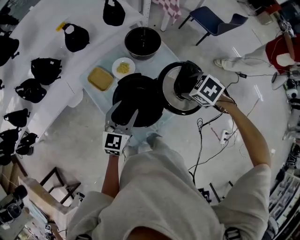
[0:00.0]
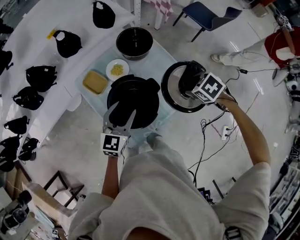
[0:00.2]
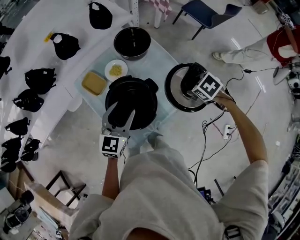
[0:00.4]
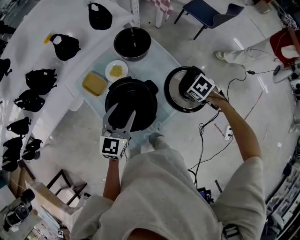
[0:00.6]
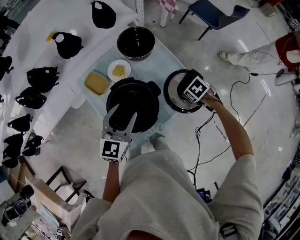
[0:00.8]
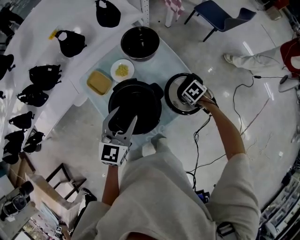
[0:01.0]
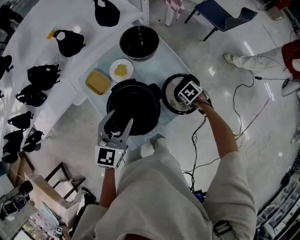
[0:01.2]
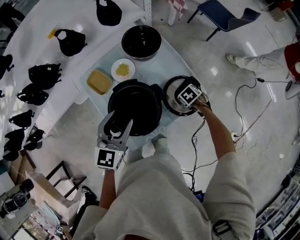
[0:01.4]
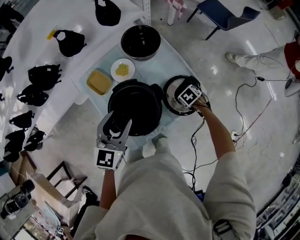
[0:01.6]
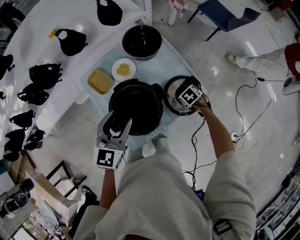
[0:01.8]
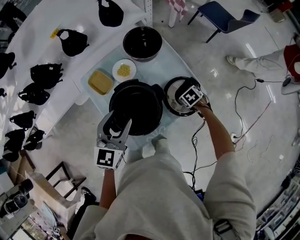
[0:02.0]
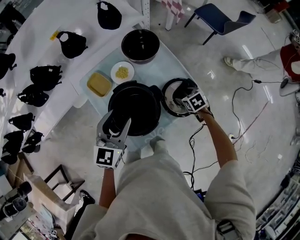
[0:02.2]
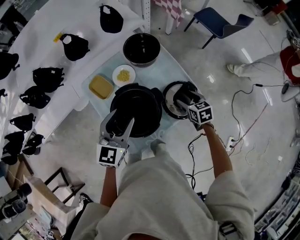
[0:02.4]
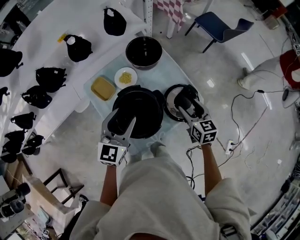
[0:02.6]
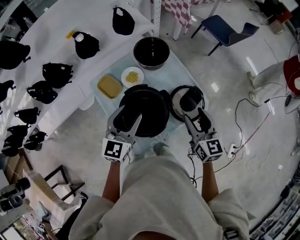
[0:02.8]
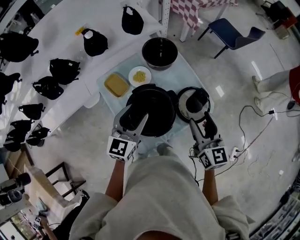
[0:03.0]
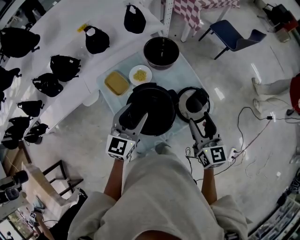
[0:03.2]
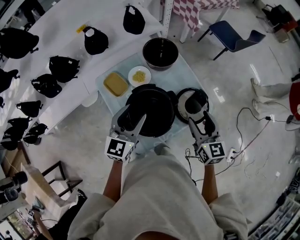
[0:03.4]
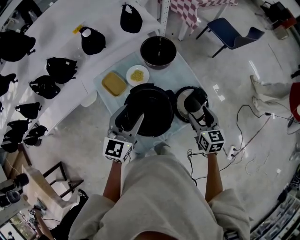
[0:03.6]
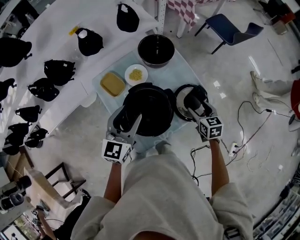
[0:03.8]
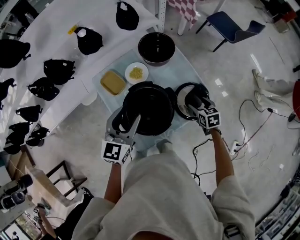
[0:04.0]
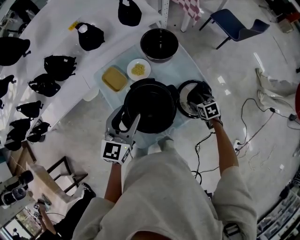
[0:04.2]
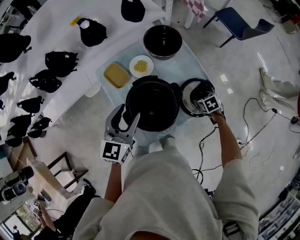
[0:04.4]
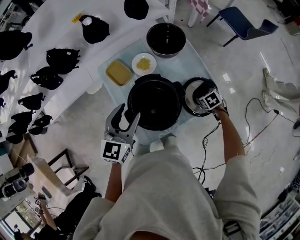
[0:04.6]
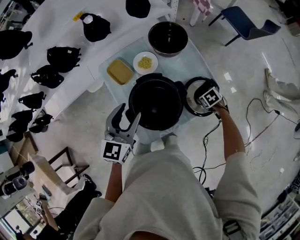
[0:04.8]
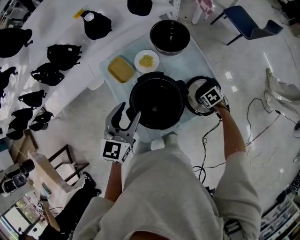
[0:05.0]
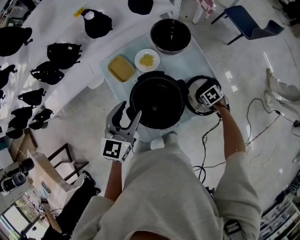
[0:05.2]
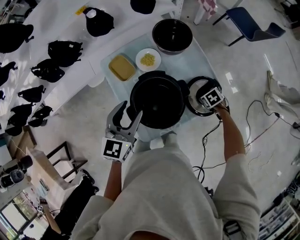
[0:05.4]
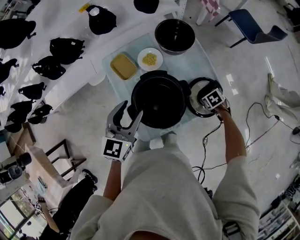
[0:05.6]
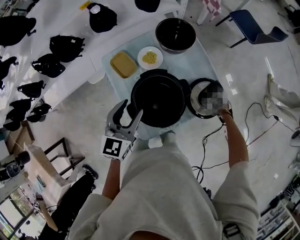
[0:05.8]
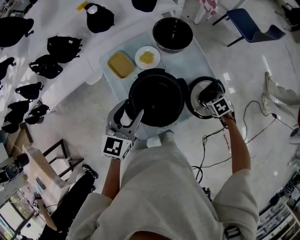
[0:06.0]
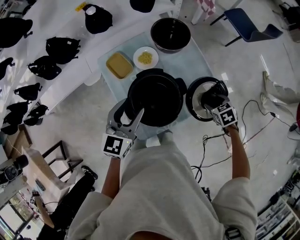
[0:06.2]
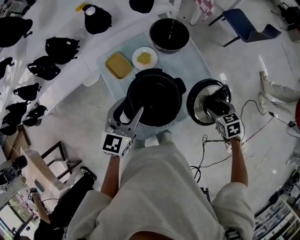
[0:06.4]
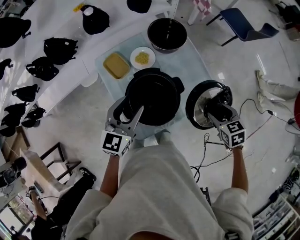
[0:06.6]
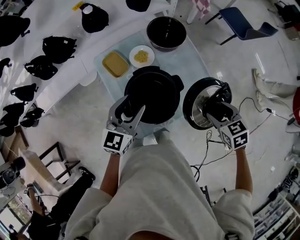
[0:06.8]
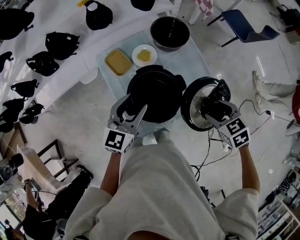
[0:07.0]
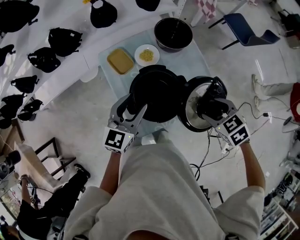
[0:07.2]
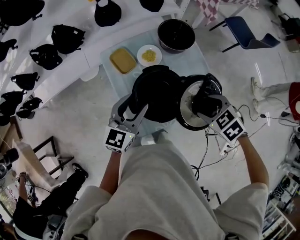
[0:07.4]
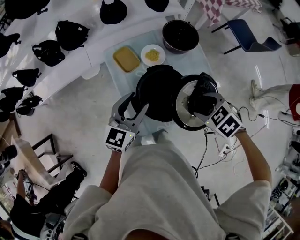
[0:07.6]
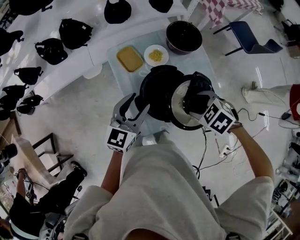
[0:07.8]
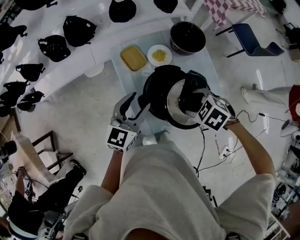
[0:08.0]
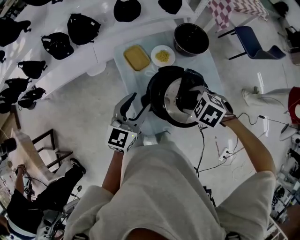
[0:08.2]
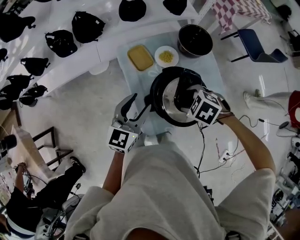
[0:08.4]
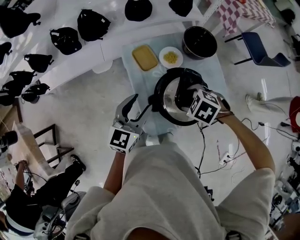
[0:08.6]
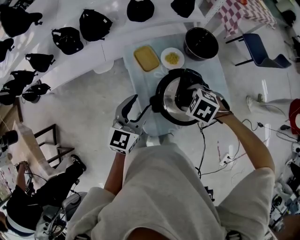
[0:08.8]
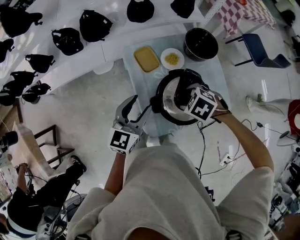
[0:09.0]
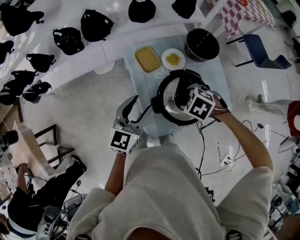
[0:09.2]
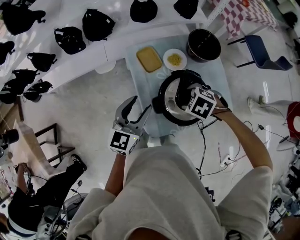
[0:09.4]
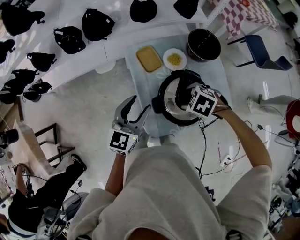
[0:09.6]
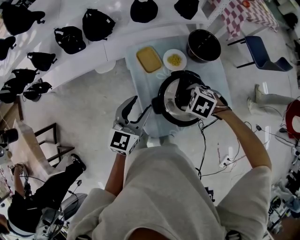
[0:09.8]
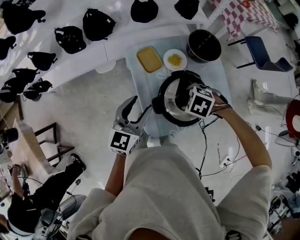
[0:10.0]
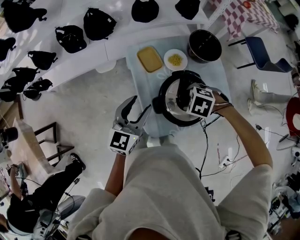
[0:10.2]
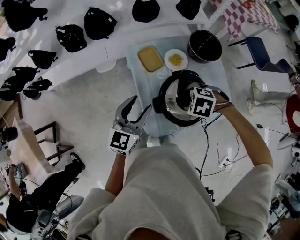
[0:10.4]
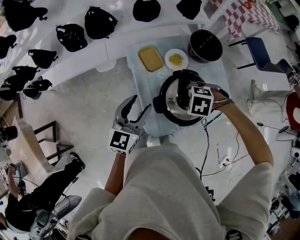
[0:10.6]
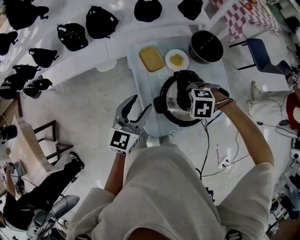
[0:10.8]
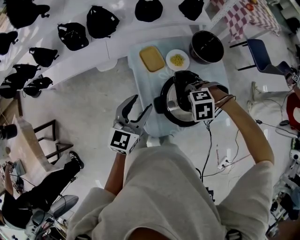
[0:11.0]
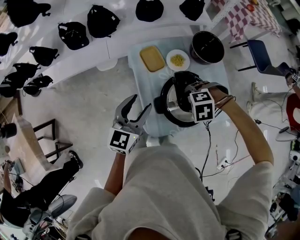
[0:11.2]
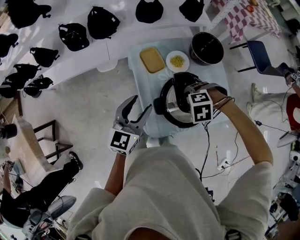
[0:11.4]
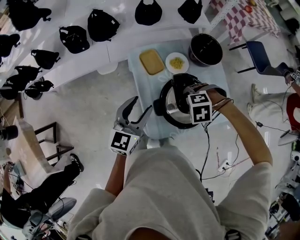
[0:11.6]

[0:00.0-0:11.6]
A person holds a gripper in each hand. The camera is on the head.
0:00.0 to 0:01.4: The right gripper moves downward, approximately 25 cm.
0:01.4 to 0:02.8: The right gripper goes about 30 cm upward, and points its fingers about 60 degrees further upward.
0:02.8 to 0:04.4: The right gripper moves downward, some 25 cm, and tilts its fingers approximately 50 degrees downward.
0:04.4 to 0:05.8: The grippers move only a little.
0:05.8 to 0:07.2: The right gripper moves upward, some 25 cm, and turns by about 20 degrees.
0:07.2 to 0:08.8: The left gripper shifts by roughly 10 cm. The right gripper changes place by roughly 20 cm, and rotates some 30 degrees.
0:08.8 to 0:10.2: The grippers stay close to where they were, moving slightly.
0:10.2 to 0:11.6: The right gripper swivels approximately 30 degrees.

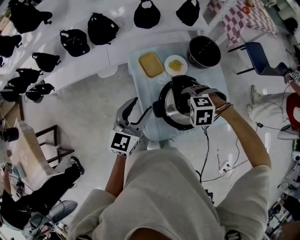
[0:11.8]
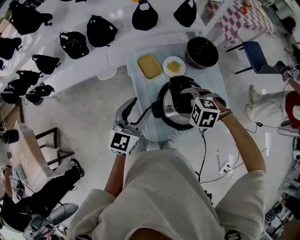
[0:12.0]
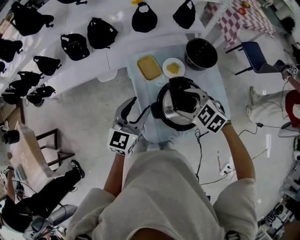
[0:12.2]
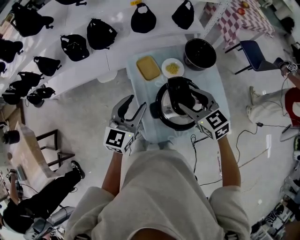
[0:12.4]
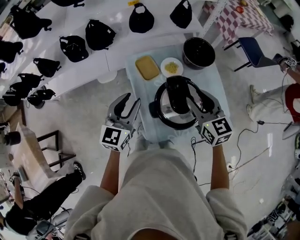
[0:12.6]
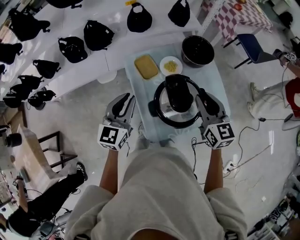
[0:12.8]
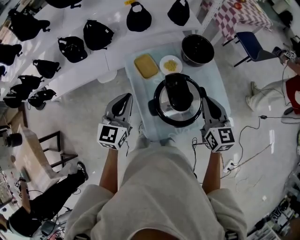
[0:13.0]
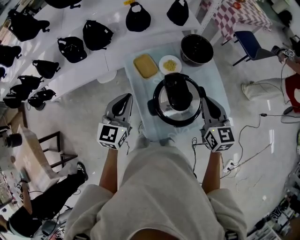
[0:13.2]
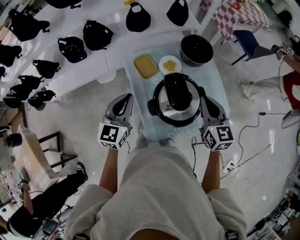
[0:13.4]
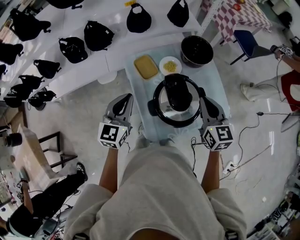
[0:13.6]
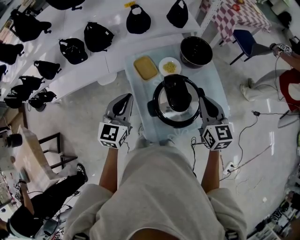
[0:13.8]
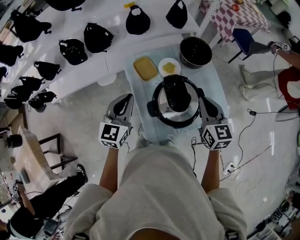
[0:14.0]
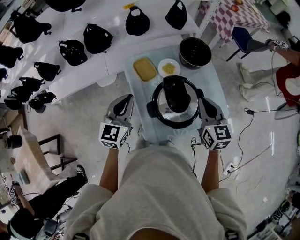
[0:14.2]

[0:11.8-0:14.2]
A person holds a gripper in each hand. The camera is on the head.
0:11.8 to 0:13.0: The right gripper goes some 15 cm upward, tips its fingers upward by some 60 degrees, and closes its fingers, while the left gripper closes.
0:13.0 to 0:14.2: Both grippers stay about where they are.

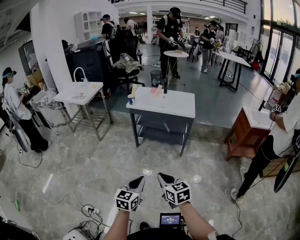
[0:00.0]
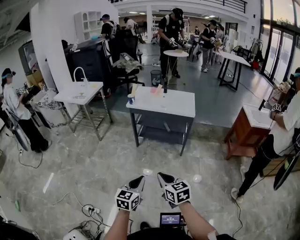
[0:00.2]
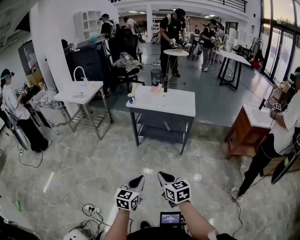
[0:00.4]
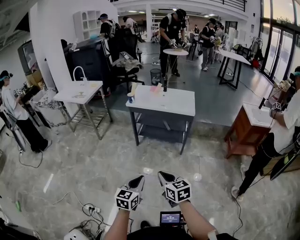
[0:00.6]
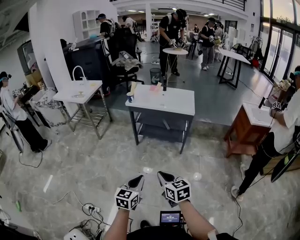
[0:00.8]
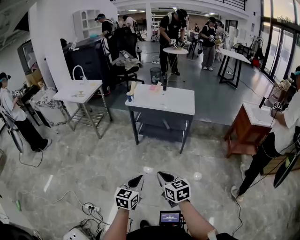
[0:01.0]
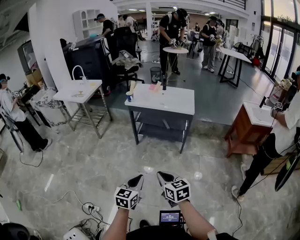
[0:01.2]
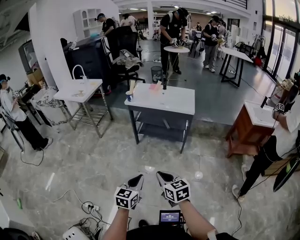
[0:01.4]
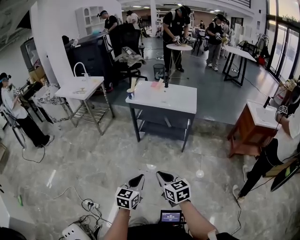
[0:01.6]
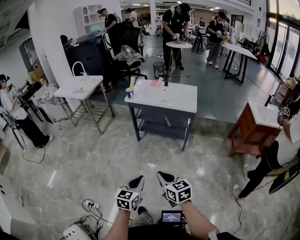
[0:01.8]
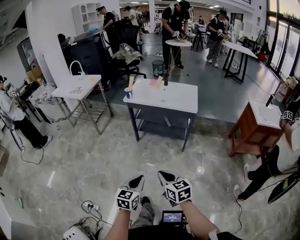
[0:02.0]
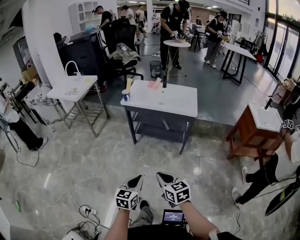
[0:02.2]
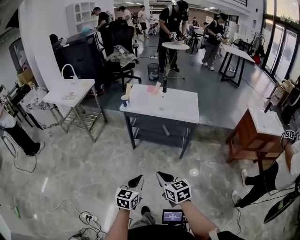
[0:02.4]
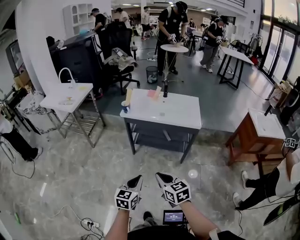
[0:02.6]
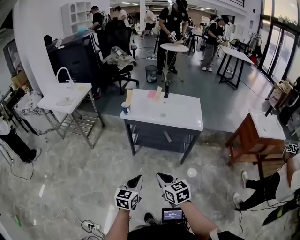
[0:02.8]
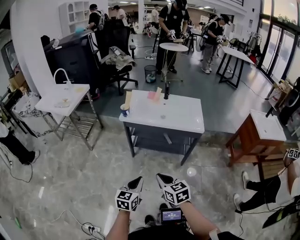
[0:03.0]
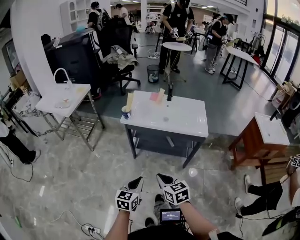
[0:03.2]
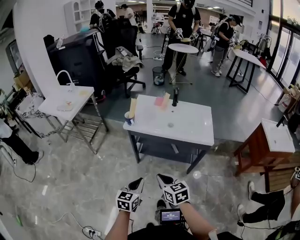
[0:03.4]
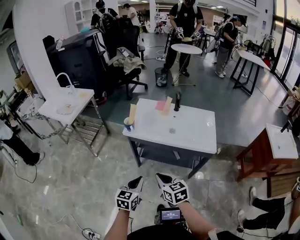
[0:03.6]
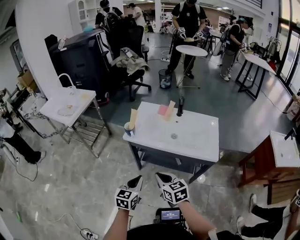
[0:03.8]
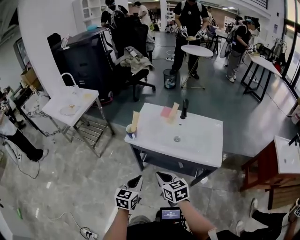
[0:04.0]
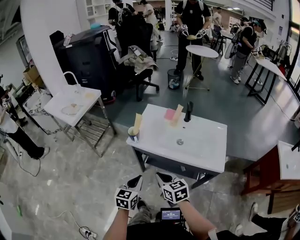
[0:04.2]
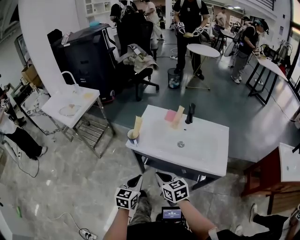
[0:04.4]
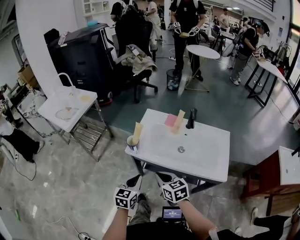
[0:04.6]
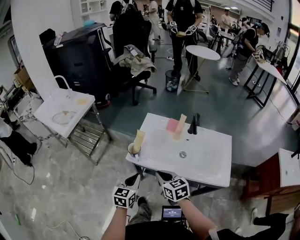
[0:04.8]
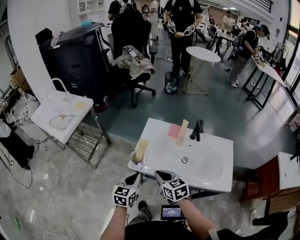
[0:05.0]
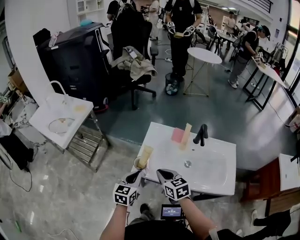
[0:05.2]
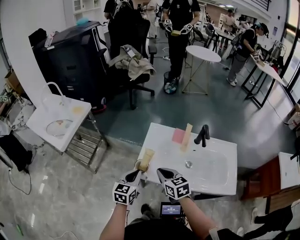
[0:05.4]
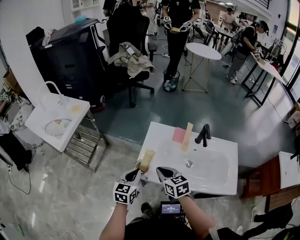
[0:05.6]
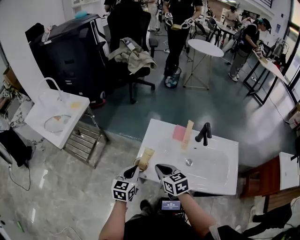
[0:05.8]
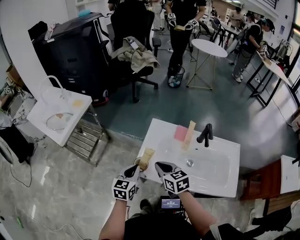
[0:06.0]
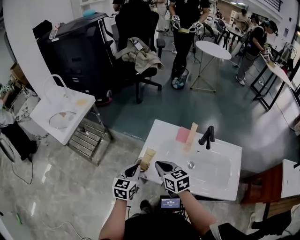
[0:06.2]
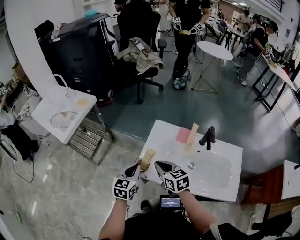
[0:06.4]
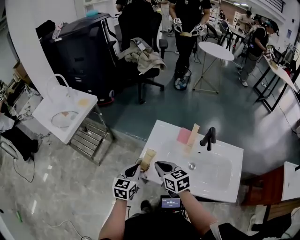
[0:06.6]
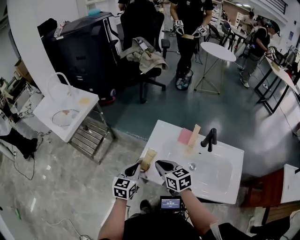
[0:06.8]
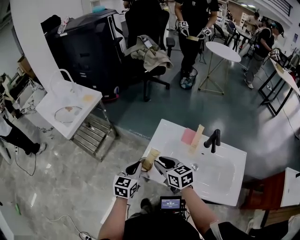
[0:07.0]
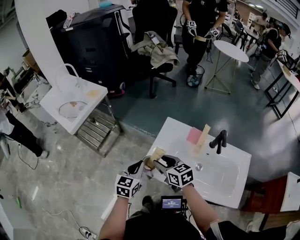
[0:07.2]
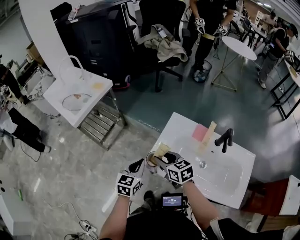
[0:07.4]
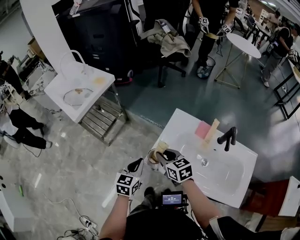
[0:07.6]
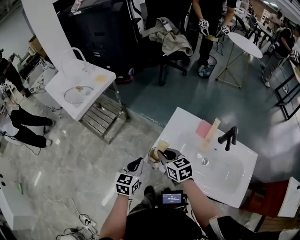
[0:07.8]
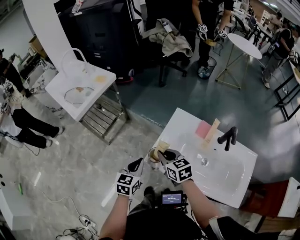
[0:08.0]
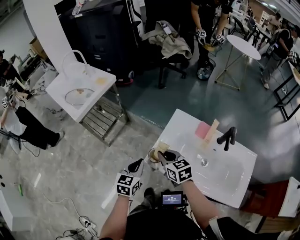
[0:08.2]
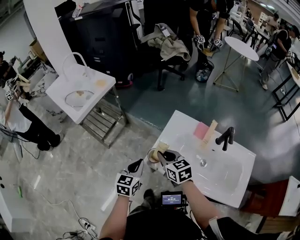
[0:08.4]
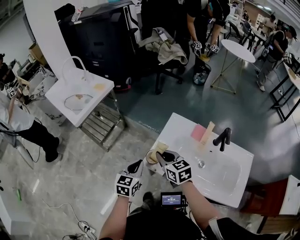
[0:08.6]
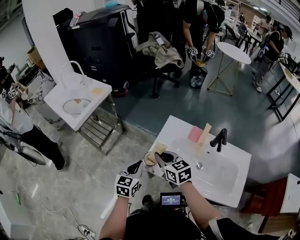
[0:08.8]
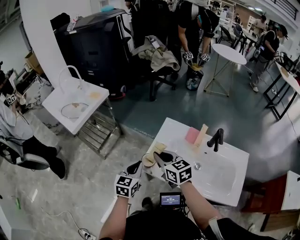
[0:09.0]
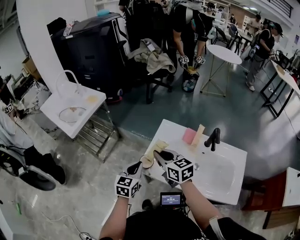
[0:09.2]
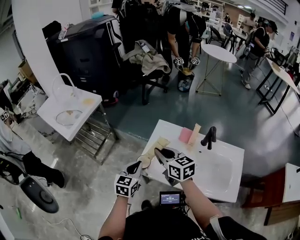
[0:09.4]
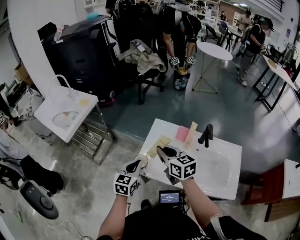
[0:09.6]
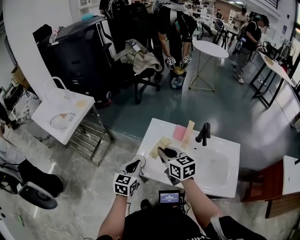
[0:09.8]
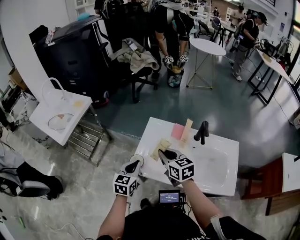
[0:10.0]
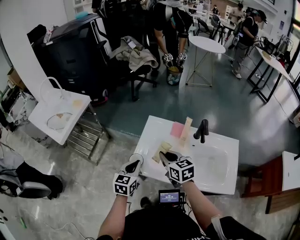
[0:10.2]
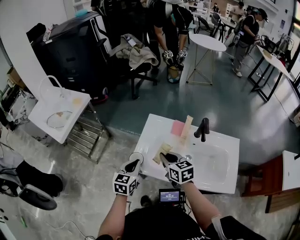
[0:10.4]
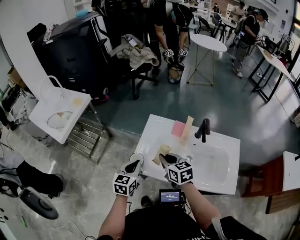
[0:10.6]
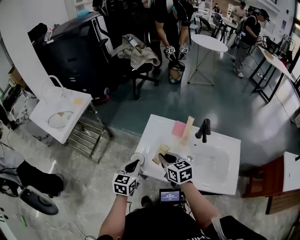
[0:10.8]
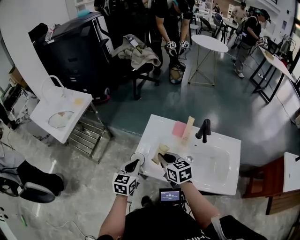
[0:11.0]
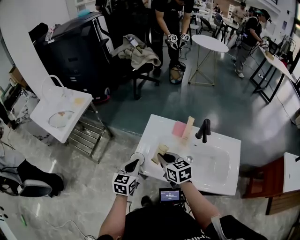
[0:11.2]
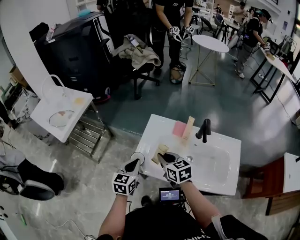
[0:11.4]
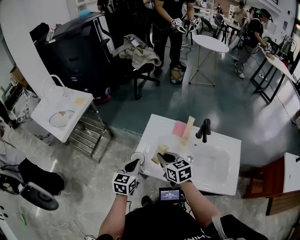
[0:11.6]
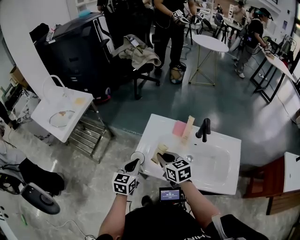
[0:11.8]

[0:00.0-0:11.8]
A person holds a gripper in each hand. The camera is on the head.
0:00.0 to 0:01.4: The grippers stay close to where they were, moving slightly.
0:01.4 to 0:03.0: Both grippers move forward, approximately 30 cm.
0:03.0 to 0:04.4: Both grippers move forward, approximately 30 cm.
0:04.4 to 0:06.0: Both grippers move forward, approximately 25 cm.
0:06.0 to 0:07.4: The right gripper goes some 5 cm to the left, and opens its fingers.
0:07.4 to 0:08.8: The right gripper closes up.
0:08.8 to 0:10.4: The right gripper heads to the right, covering some 10 cm. The left gripper heads to the right, covering some 5 cm.
0:10.4 to 0:11.8: The grippers make only small movements.
